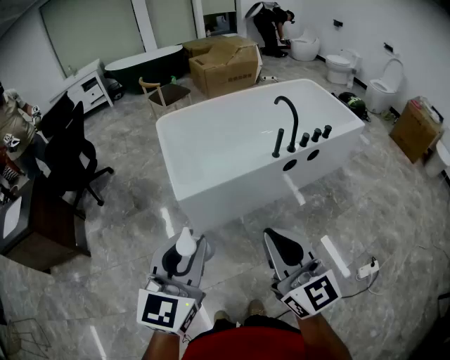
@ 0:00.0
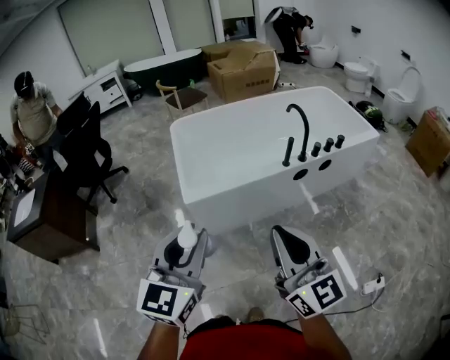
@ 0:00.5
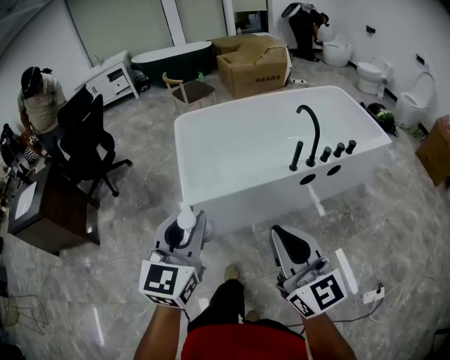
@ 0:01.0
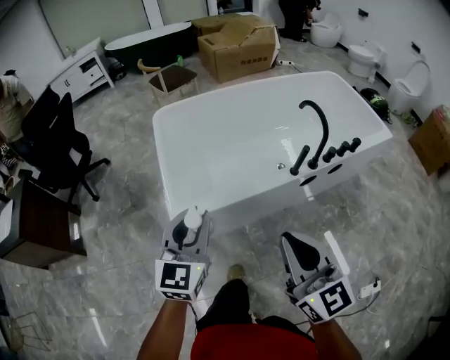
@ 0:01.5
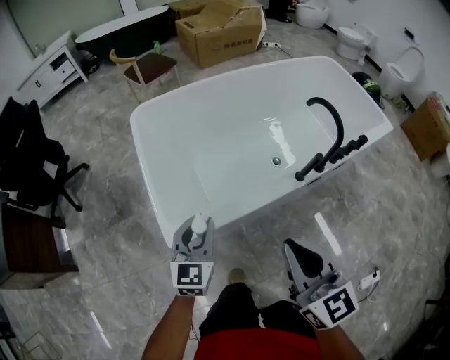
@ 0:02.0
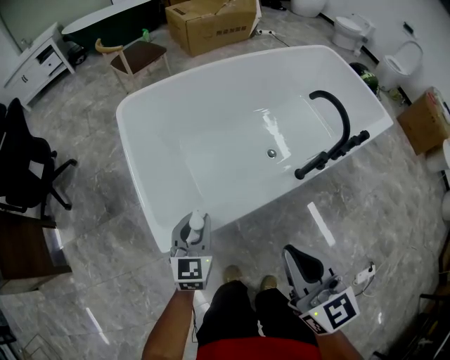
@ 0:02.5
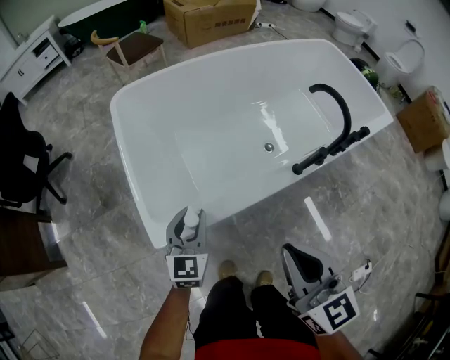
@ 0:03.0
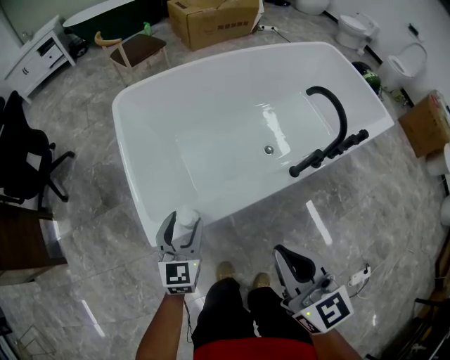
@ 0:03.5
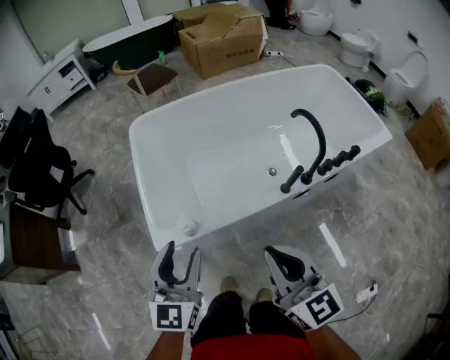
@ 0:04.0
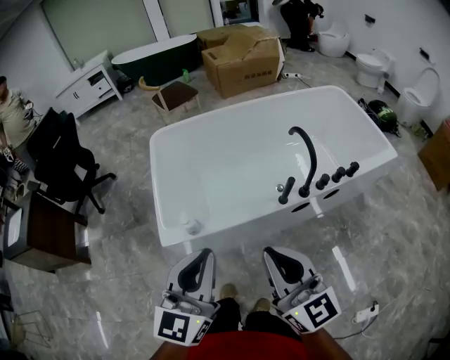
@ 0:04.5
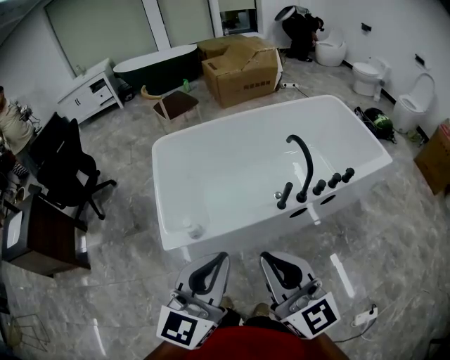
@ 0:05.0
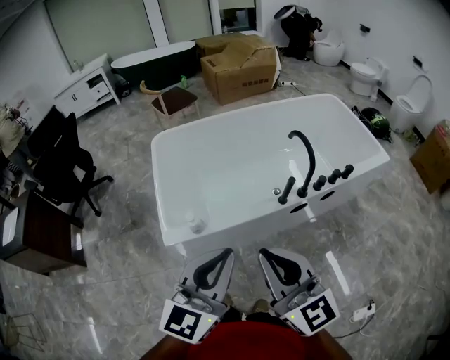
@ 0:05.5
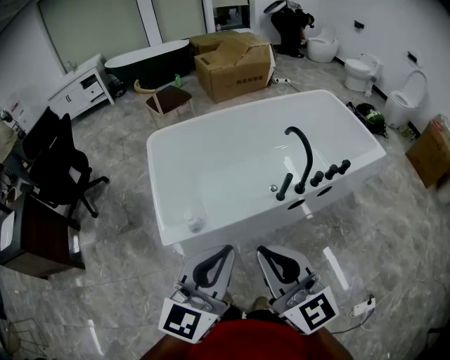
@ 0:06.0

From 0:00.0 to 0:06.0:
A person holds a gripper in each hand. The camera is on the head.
From 0:00.0 to 0:02.0: The left gripper is displaced forward and downward by about 50 cm, while the right gripper goes about 35 cm forward.
From 0:02.0 to 0:04.0: The left gripper moves upward and backward, some 15 cm, and opens its fingers; the right gripper moves to the right, approximately 5 cm.
From 0:04.0 to 0:06.0: The left gripper moves upward, backward and to the right, roughly 20 cm, rotates some 20 degrees, and closes its fingers, while the right gripper travels upward and backward by approximately 15 cm.

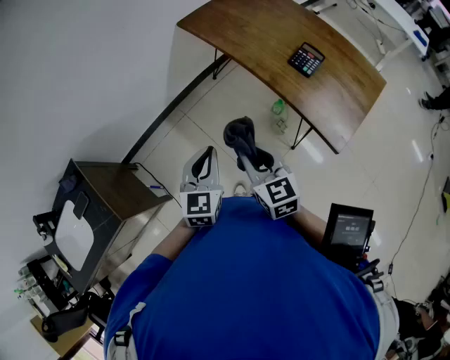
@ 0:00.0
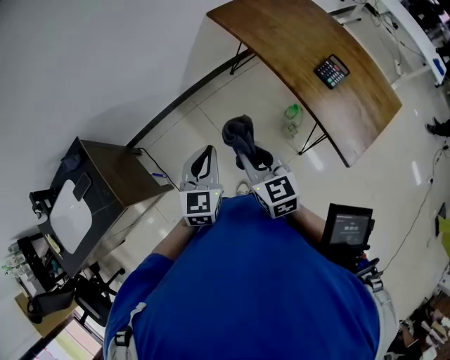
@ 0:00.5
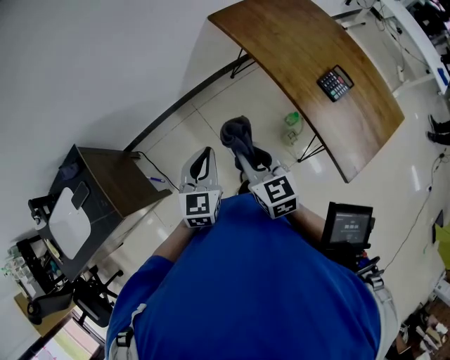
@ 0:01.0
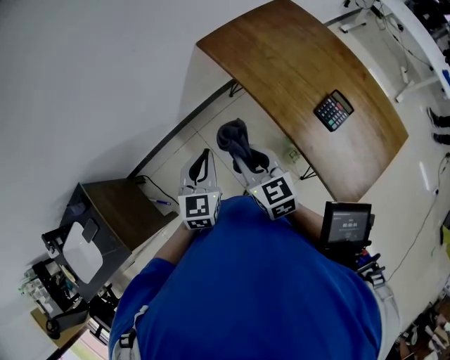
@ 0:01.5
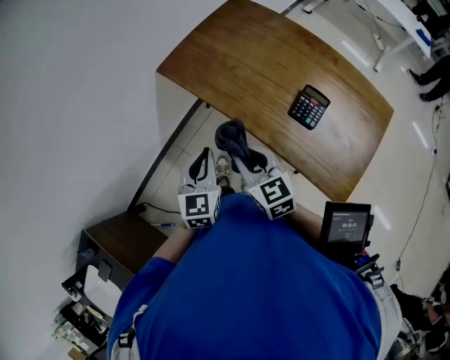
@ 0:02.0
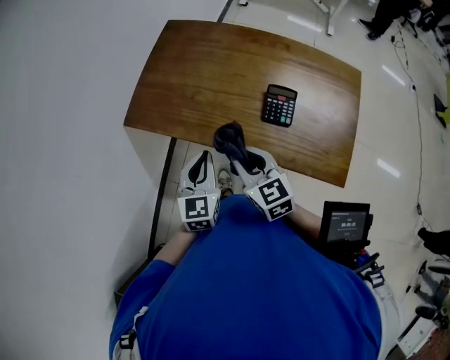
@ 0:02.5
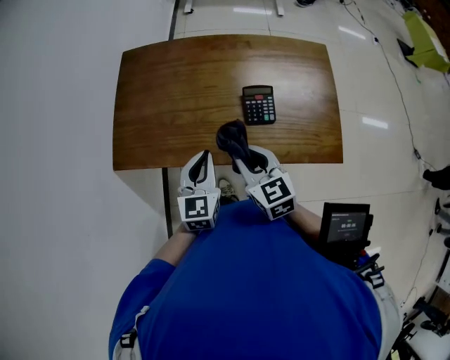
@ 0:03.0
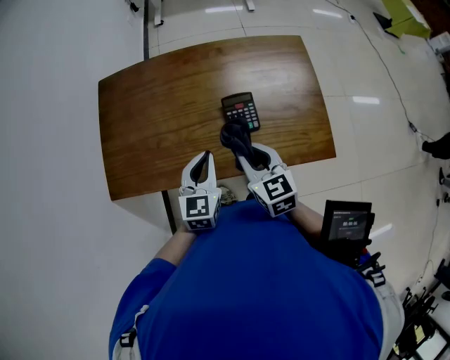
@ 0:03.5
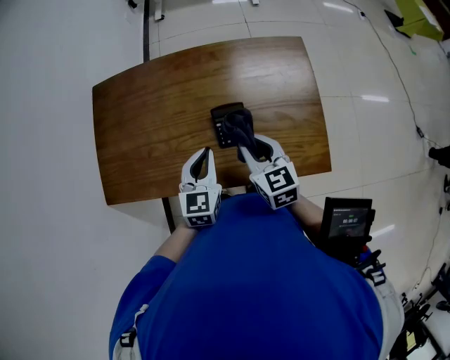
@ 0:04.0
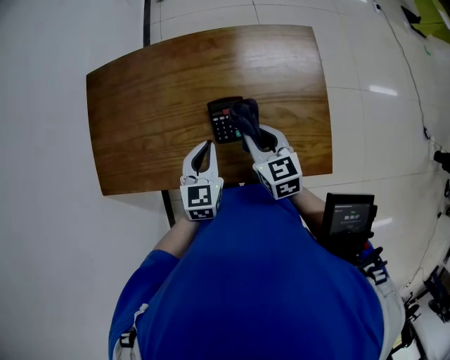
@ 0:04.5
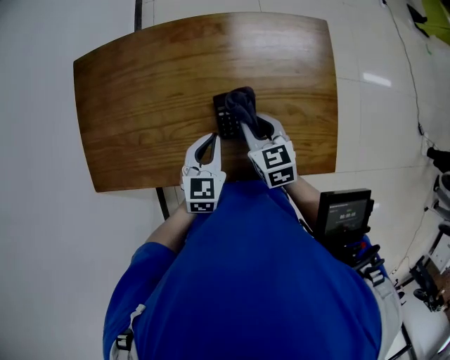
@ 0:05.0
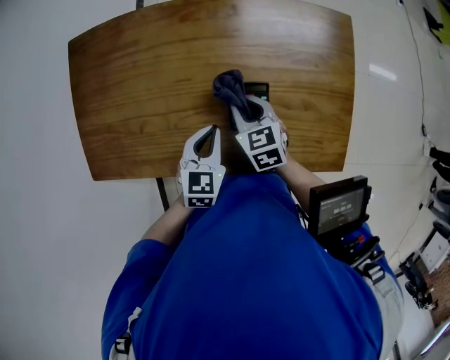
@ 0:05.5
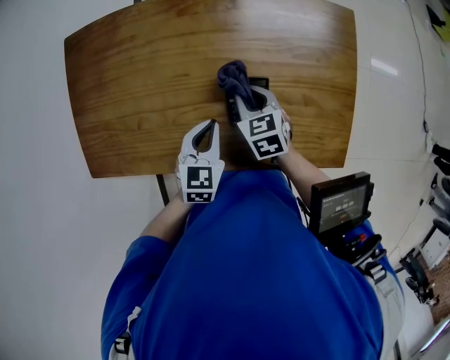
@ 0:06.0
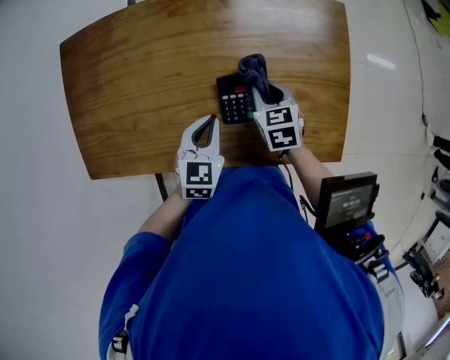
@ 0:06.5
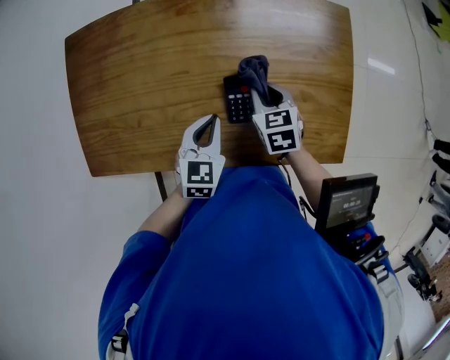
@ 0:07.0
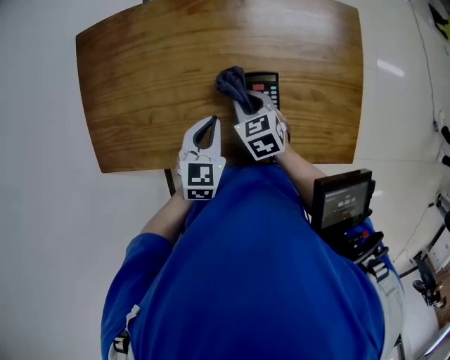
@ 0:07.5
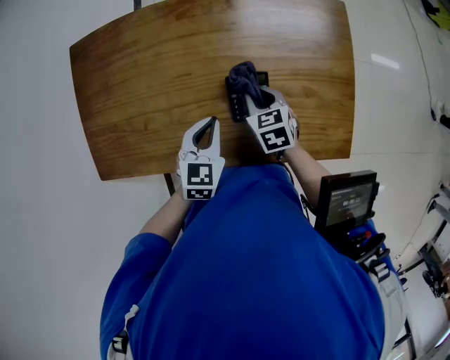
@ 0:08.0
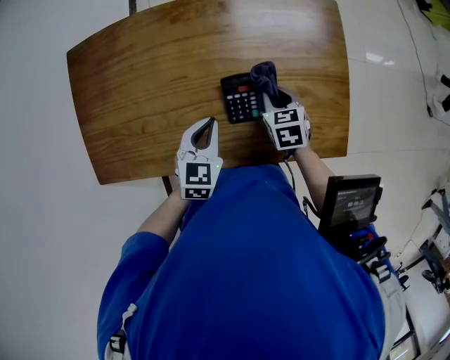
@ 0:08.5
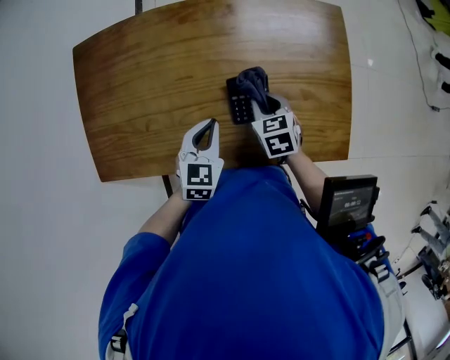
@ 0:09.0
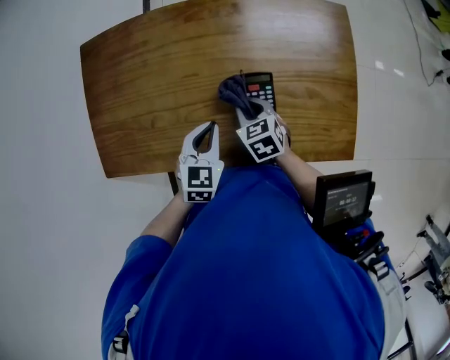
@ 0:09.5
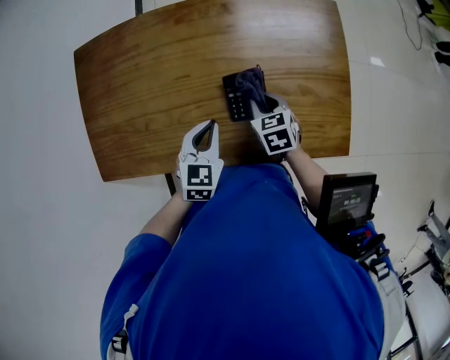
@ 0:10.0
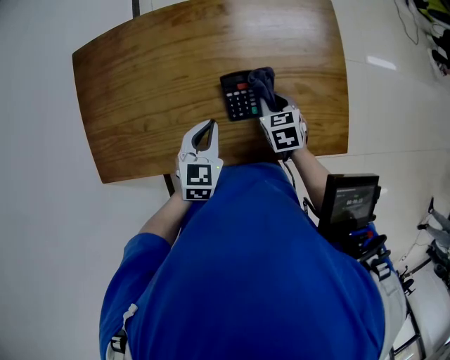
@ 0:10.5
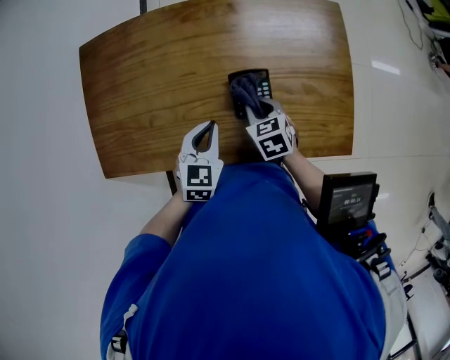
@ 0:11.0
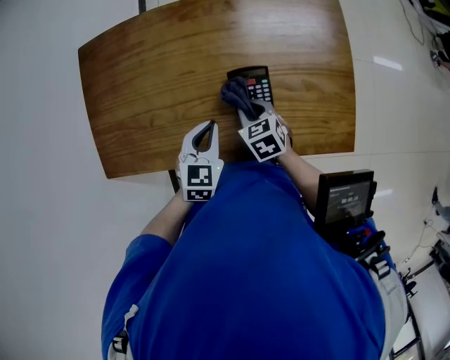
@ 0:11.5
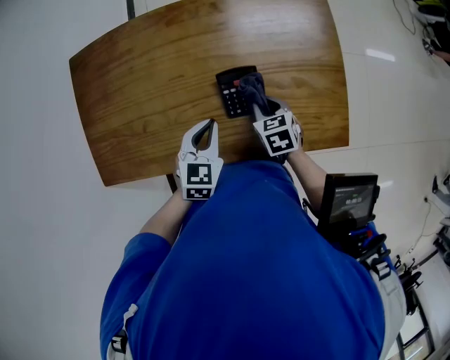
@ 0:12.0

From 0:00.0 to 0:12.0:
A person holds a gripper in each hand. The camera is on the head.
From 0:00.0 to 0:02.0: Both grippers travel together forward, about 30 cm.
From 0:02.0 to 0:04.0: The left gripper reaches some 10 cm forward, then returns; the right gripper reaches roughly 5 cm forward, then returns.
From 0:04.0 to 0:06.0: The right gripper moves forward, some 5 cm.
From 0:06.0 to 0:08.0: The right gripper moves left and right over about 5 cm, changing direction 2 times.
From 0:08.0 to 0:10.0: The right gripper goes left and right, some 10 cm each way, reversing 2 times.

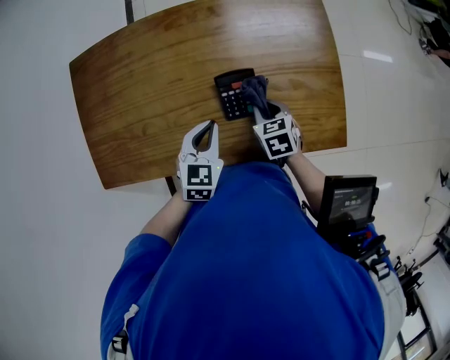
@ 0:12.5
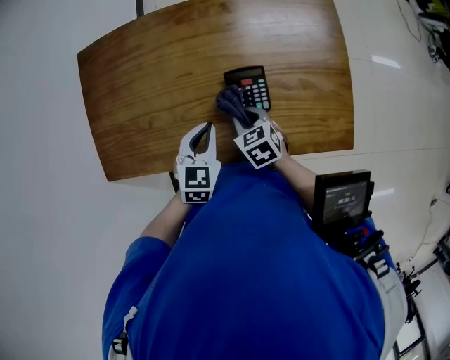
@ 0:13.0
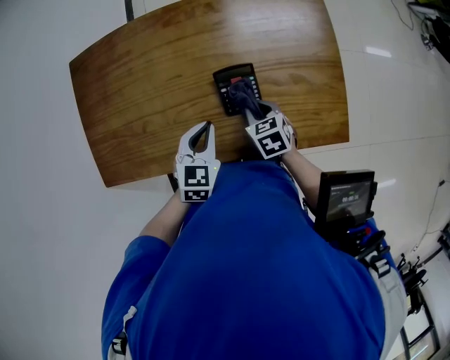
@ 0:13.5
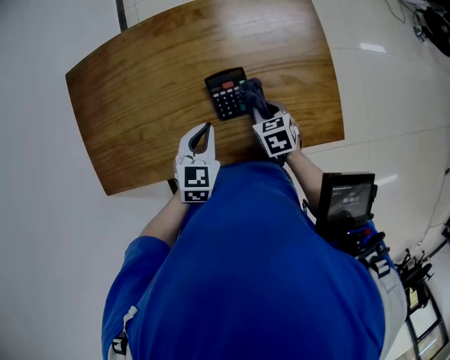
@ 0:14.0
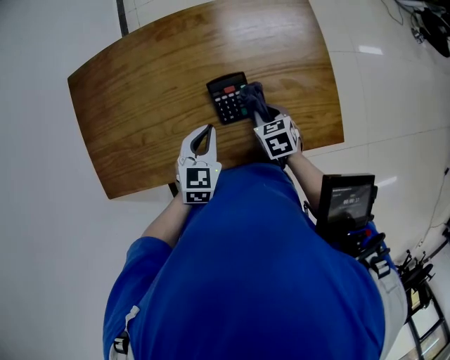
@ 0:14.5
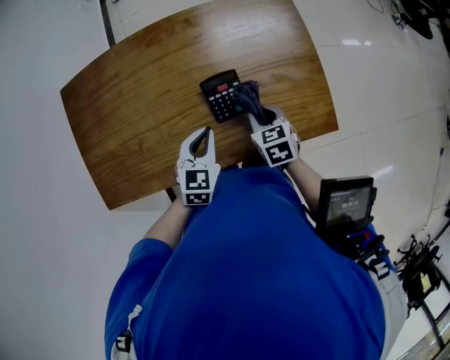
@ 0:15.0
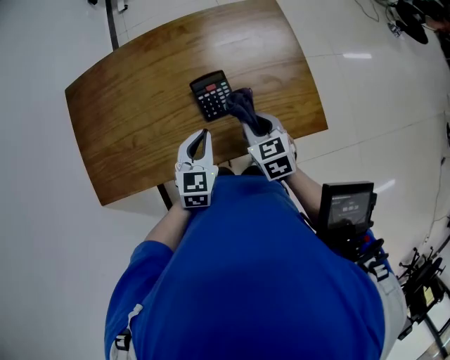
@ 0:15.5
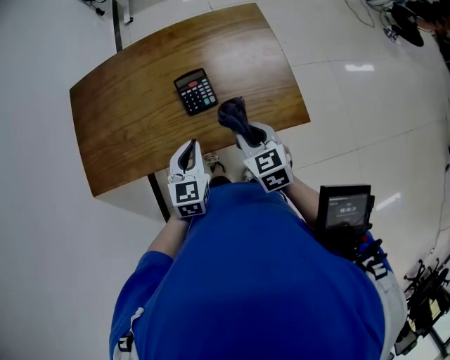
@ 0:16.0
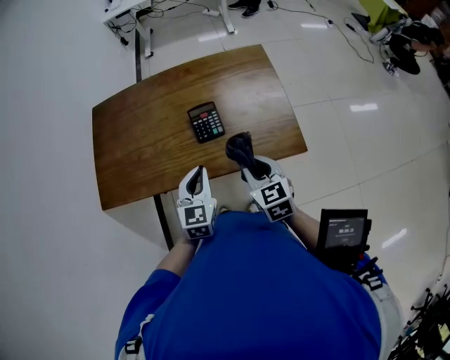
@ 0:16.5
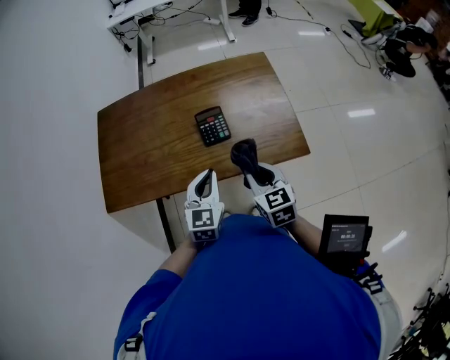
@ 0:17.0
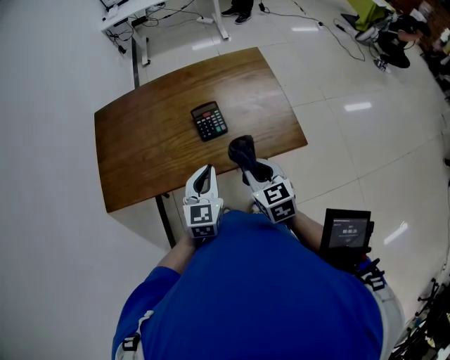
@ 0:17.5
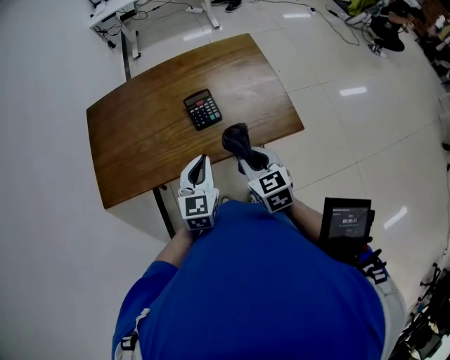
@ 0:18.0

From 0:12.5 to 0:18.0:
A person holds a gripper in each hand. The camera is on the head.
From 0:12.5 to 0:14.5: The right gripper travels to the left and back again, approximately 5 cm each way.
From 0:14.5 to 0:16.0: Both grippers move to the left, about 10 cm. The right gripper rotates roughly 20 degrees.
From 0:16.0 to 0:18.0: The left gripper ends up approximately 5 cm from where it was.

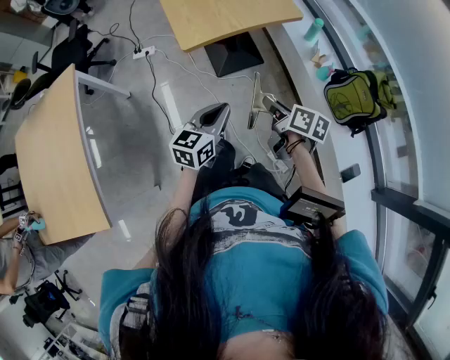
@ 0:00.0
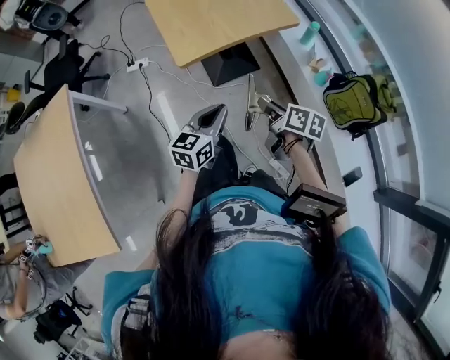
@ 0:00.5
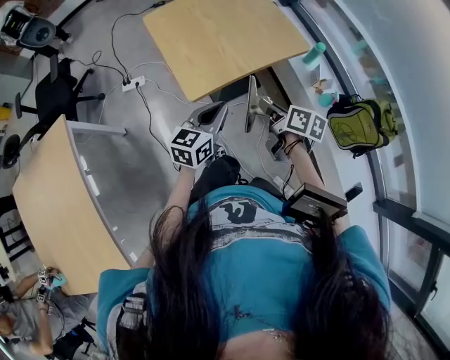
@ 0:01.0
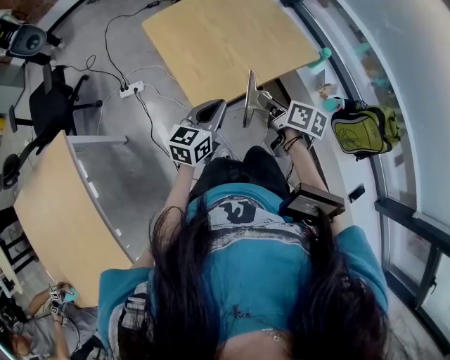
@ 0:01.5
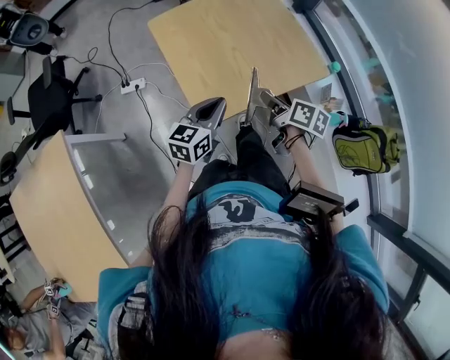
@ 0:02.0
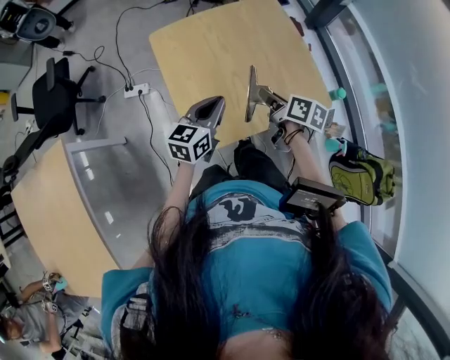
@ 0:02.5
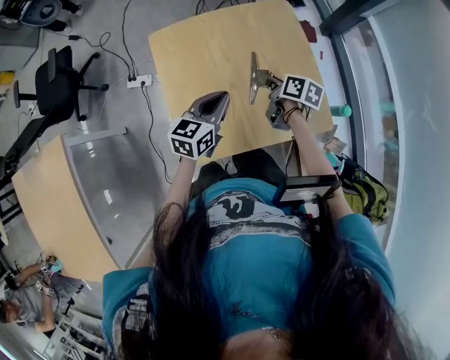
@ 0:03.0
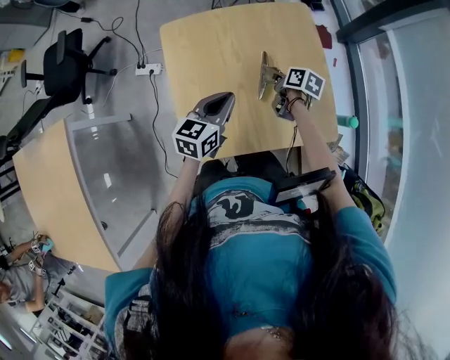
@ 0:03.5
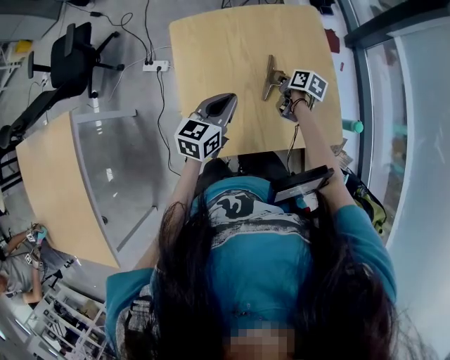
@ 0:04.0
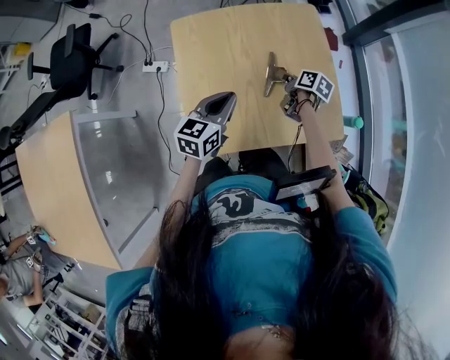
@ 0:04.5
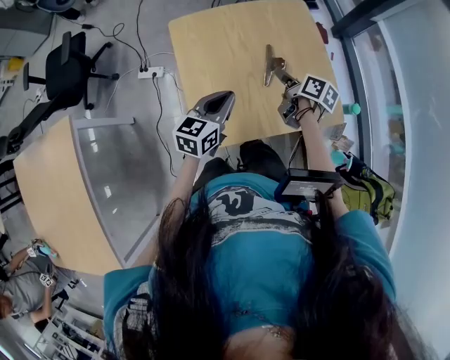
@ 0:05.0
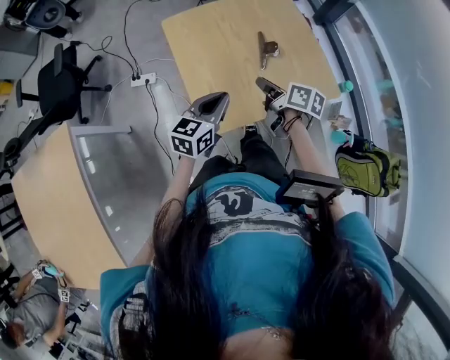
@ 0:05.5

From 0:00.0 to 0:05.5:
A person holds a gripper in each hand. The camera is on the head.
From 0:00.0 to 0:02.0: The pair of grippers is taken forward, some 40 cm.
From 0:02.0 to 0:03.5: The left gripper is displaced forward by about 20 cm. The right gripper shifts roughly 35 cm forward and downward, and swivels about 20 degrees.
From 0:03.5 to 0:05.5: The right gripper heads backward, upward and to the left, covering roughly 25 cm, and turns by roughly 20 degrees. Meanwhile the left gripper moves backward and to the left, approximately 15 cm.
